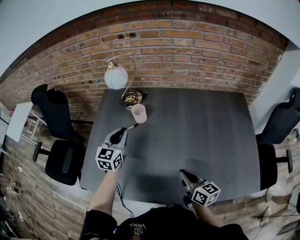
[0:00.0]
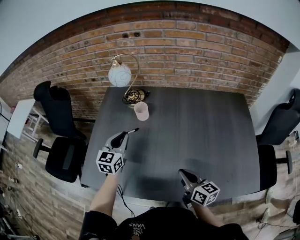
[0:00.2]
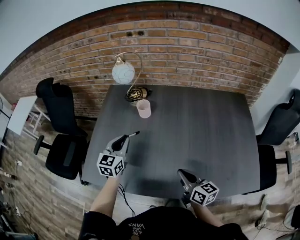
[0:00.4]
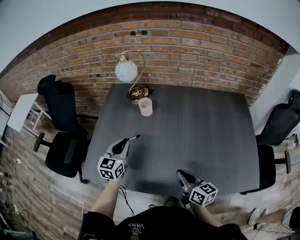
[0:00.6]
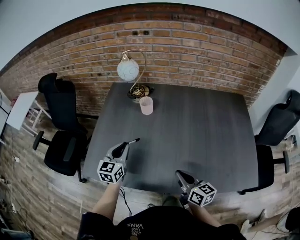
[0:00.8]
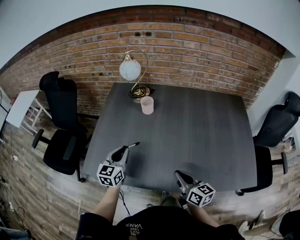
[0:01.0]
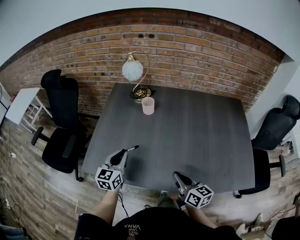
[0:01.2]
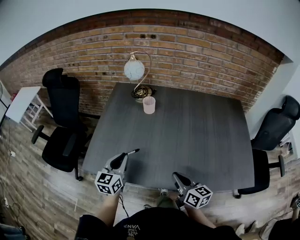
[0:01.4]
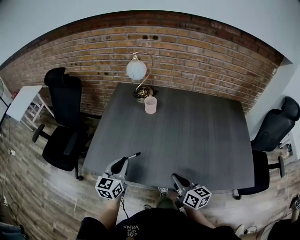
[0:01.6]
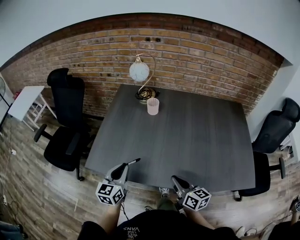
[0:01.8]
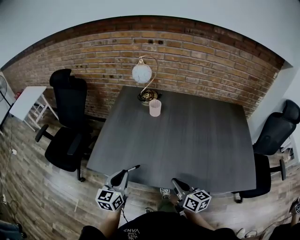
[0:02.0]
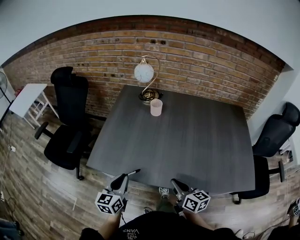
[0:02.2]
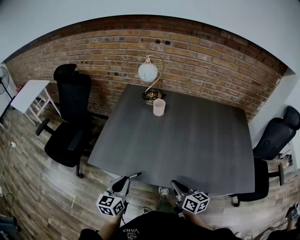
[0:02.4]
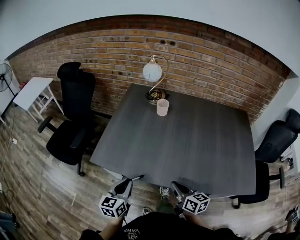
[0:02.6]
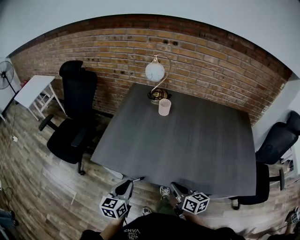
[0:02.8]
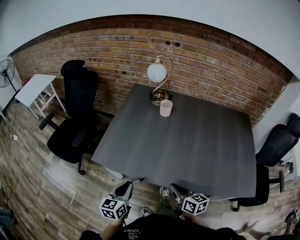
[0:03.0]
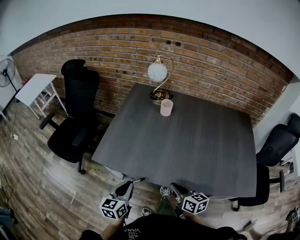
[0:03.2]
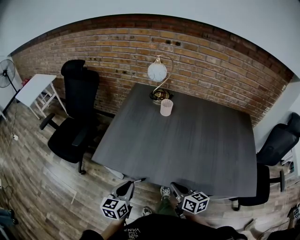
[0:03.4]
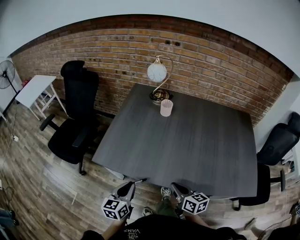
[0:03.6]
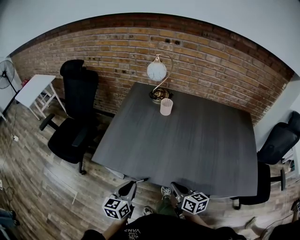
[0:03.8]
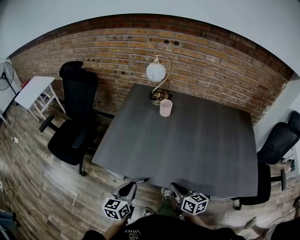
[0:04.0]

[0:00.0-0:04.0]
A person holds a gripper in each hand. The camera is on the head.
0:00.0 to 0:01.4: The right gripper is displaced backward and to the left by approximately 10 cm; the left gripper shifts about 20 cm backward.
0:01.4 to 0:02.6: The left gripper heads backward, covering some 15 cm, while the right gripper travels to the left by approximately 5 cm.
0:02.6 to 0:04.0: The grippers make only small movements.

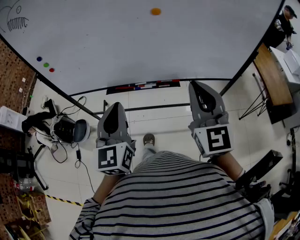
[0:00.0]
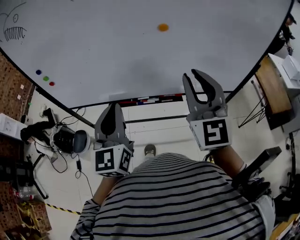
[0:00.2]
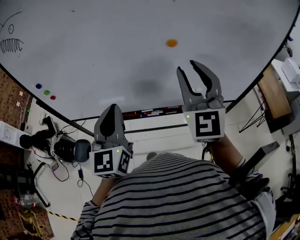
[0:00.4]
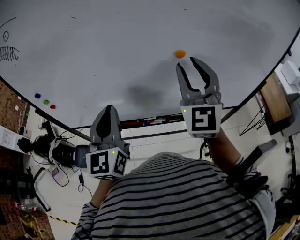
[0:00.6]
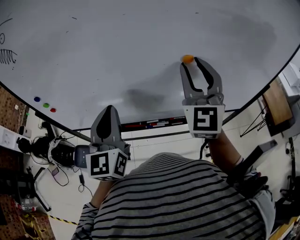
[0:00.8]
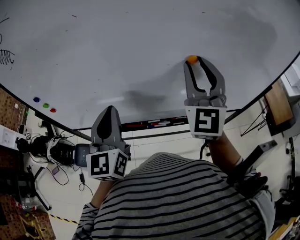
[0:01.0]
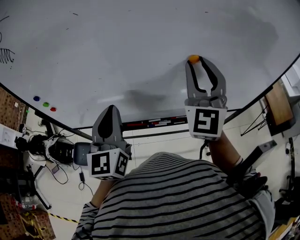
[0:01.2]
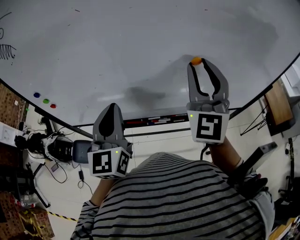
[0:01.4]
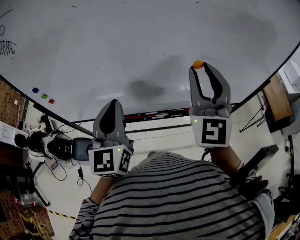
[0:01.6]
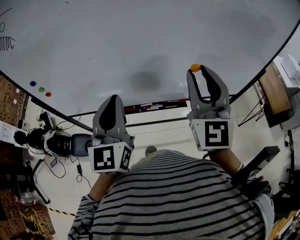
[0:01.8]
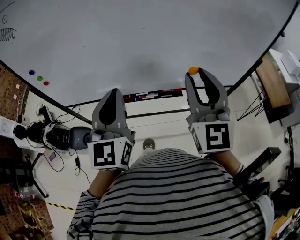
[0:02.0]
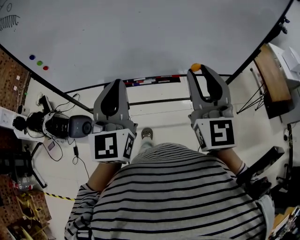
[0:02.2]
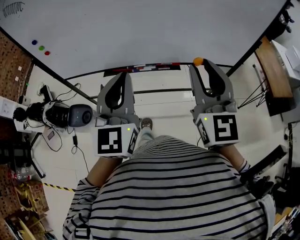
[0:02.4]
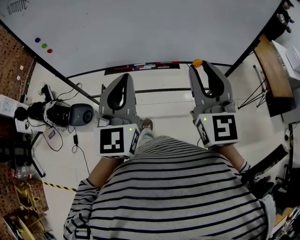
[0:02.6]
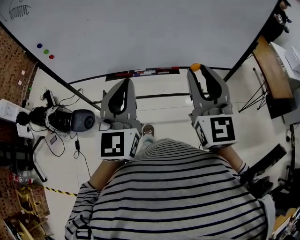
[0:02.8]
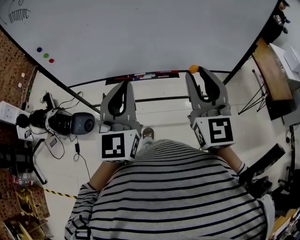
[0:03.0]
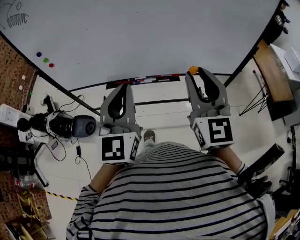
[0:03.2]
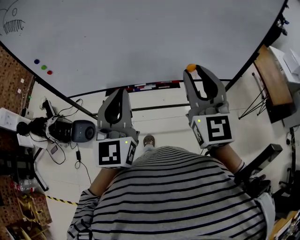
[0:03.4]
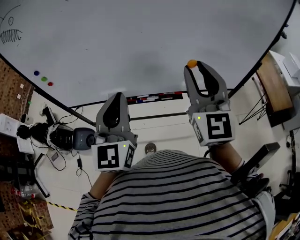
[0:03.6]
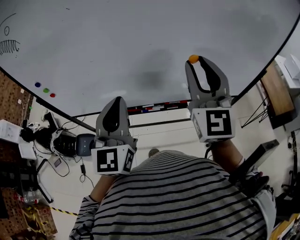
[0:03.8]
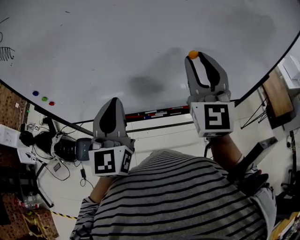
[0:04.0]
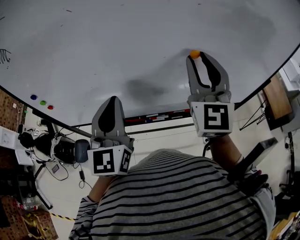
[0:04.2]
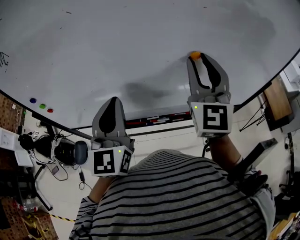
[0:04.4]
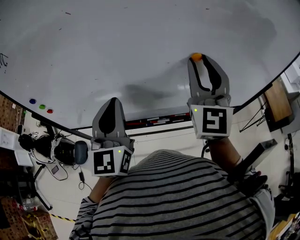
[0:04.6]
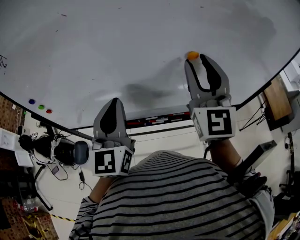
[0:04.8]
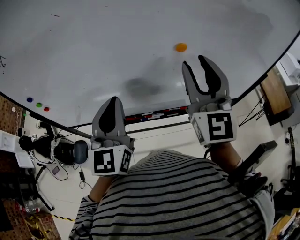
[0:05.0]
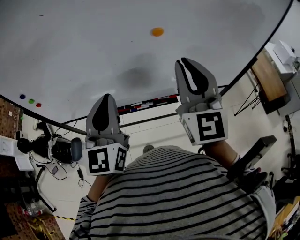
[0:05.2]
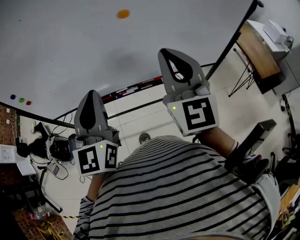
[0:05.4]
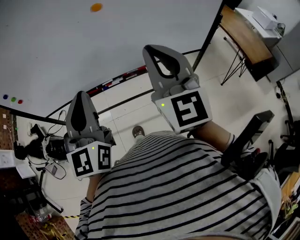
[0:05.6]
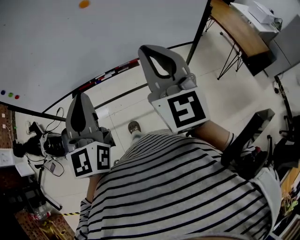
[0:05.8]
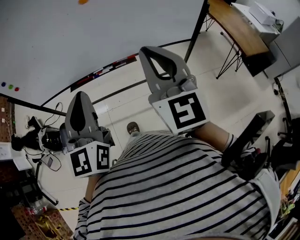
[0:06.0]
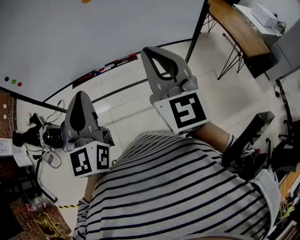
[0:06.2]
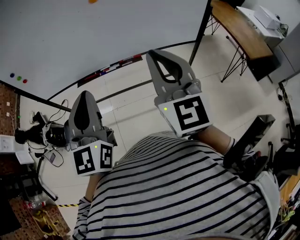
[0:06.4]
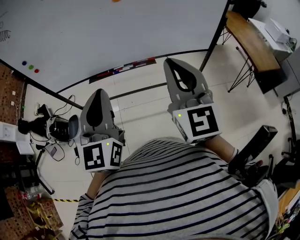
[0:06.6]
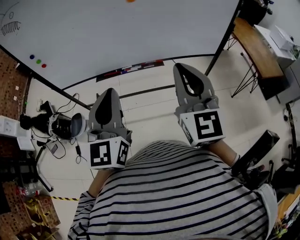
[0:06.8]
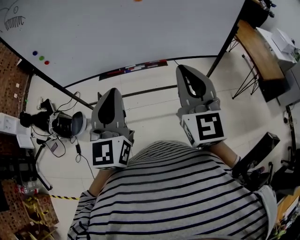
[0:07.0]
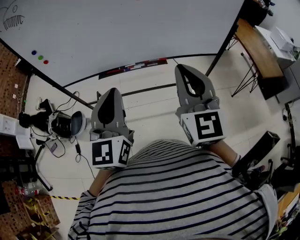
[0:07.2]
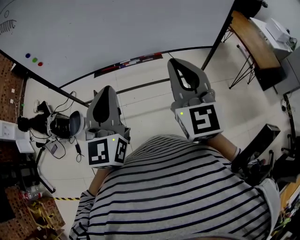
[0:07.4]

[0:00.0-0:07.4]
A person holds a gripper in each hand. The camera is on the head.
0:00.0 to 0:01.4: The left gripper travels forward and to the left by some 20 cm. The right gripper moves forward and upward, approximately 20 cm, changes its angle by some 20 degrees, and opens up.
0:01.4 to 0:03.0: The left gripper is displaced backward and to the right by about 25 cm. Meanwhile the right gripper shifts roughly 25 cm backward, and rotates approximately 20 degrees.
0:03.0 to 0:04.4: The right gripper goes about 25 cm forward. The left gripper heads forward and to the left, covering some 25 cm.
0:04.4 to 0:06.0: Both grippers travel together backward and to the right, roughly 30 cm. The right gripper closes its fingers.
0:06.0 to 0:07.4: The grippers both shift to the left by some 5 cm.

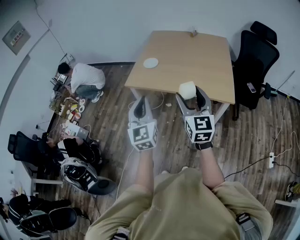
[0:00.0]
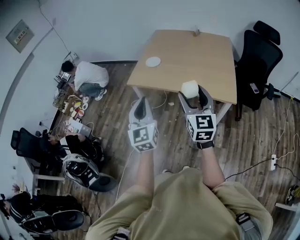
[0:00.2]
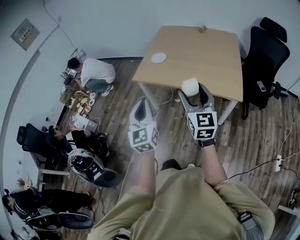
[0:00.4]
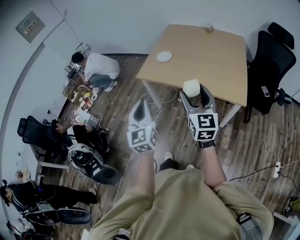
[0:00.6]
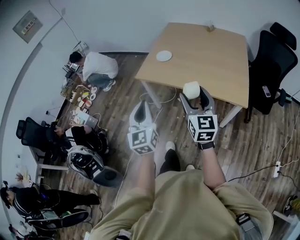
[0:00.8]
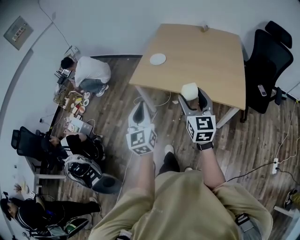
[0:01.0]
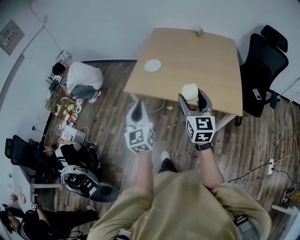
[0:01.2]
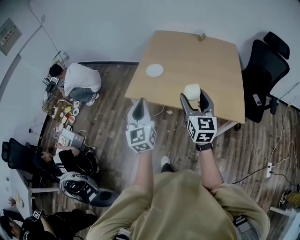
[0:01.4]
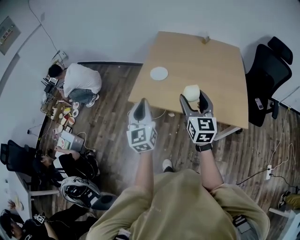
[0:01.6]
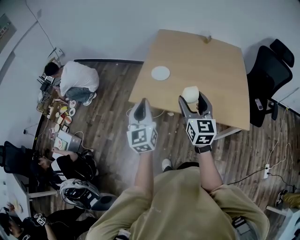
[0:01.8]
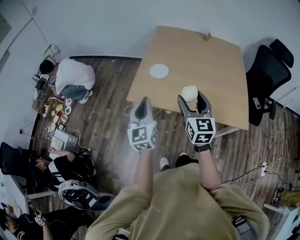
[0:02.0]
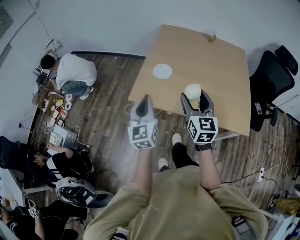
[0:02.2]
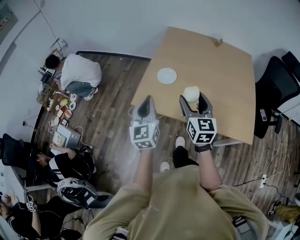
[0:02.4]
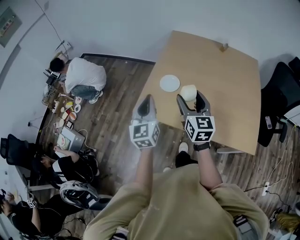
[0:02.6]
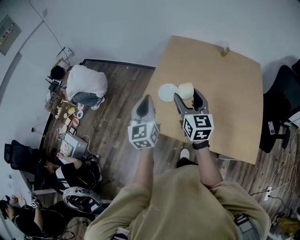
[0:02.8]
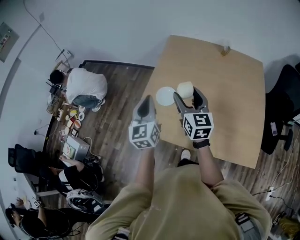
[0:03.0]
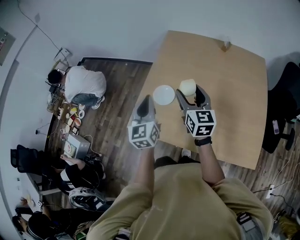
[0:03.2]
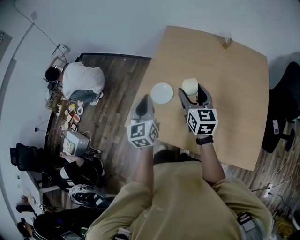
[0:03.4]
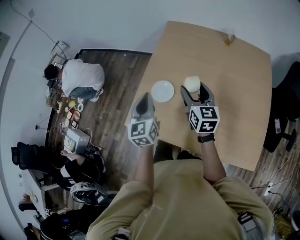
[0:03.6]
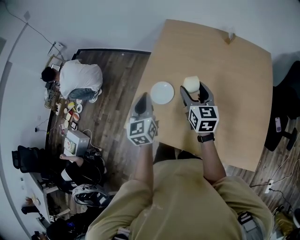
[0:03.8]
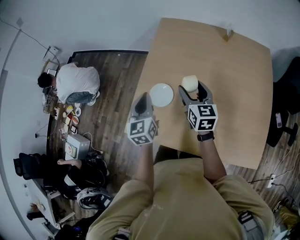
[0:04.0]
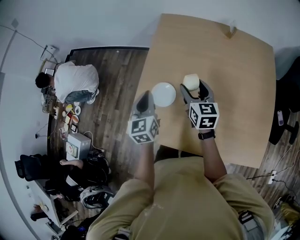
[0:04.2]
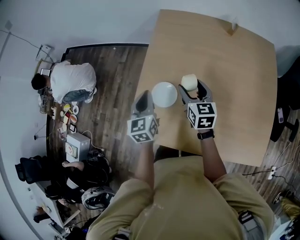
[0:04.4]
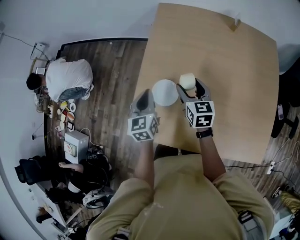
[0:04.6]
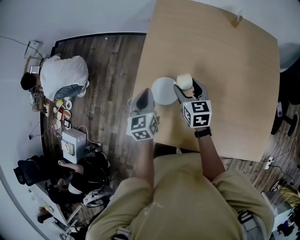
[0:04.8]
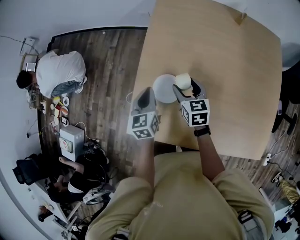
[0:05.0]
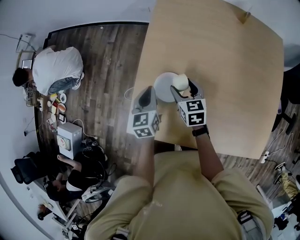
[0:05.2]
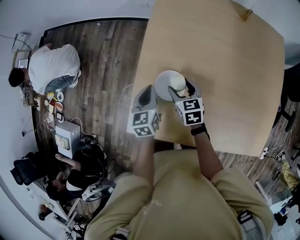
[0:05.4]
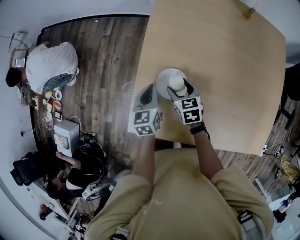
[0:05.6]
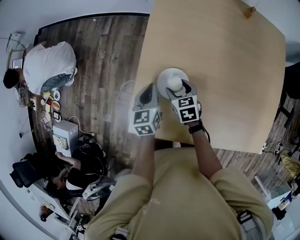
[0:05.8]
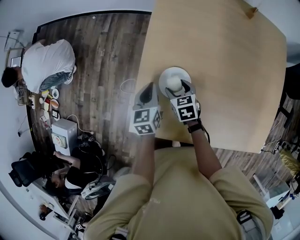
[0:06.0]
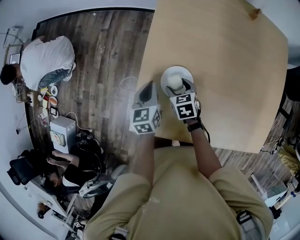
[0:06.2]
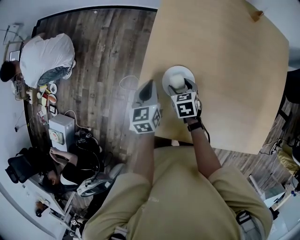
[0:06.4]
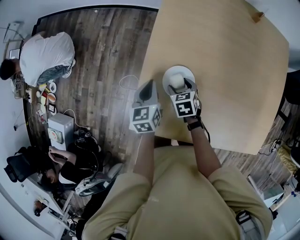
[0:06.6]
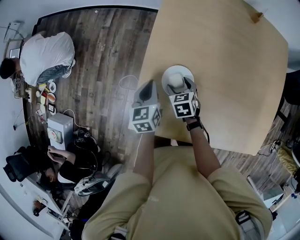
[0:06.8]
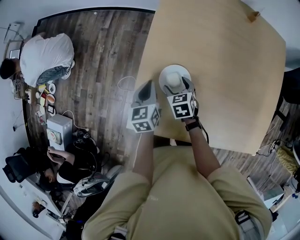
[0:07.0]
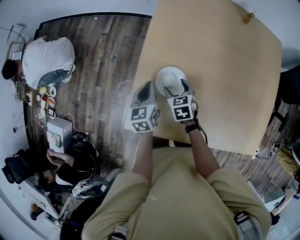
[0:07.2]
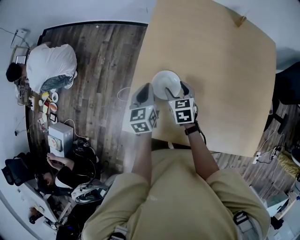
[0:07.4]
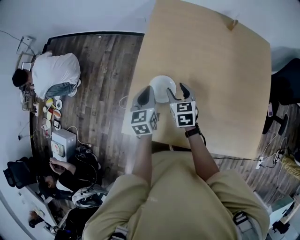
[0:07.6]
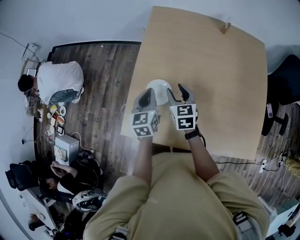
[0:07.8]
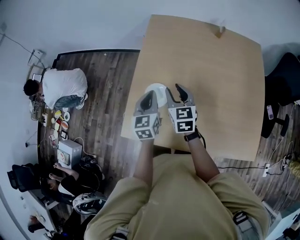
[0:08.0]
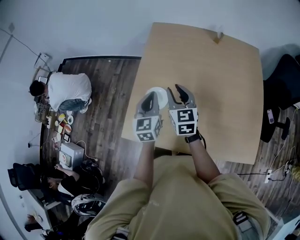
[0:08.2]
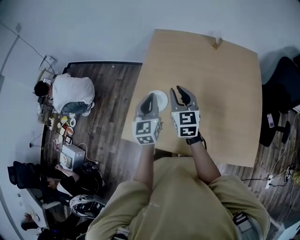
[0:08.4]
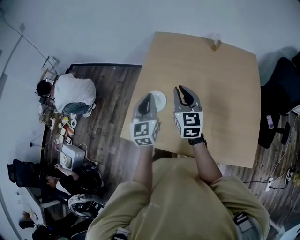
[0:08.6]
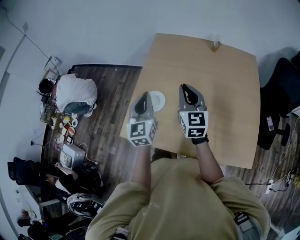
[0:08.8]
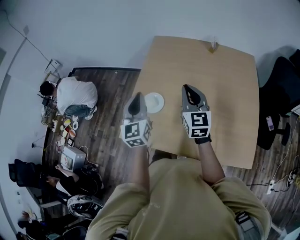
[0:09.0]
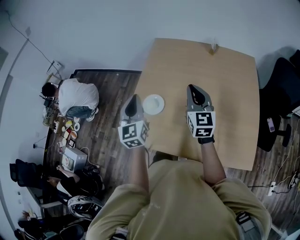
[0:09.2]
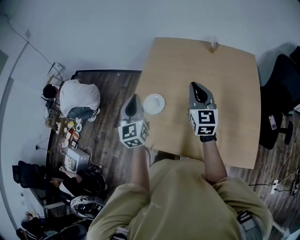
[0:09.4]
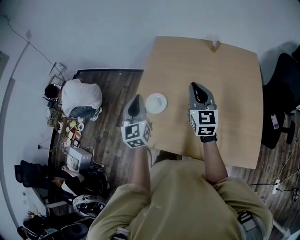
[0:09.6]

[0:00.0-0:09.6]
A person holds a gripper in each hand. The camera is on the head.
0:00.0 to 0:01.6: Both grippers move forward, about 25 cm.
0:01.6 to 0:03.2: Both grippers travel together forward, some 35 cm.
0:03.2 to 0:04.8: The grippers both shift downward and forward by about 25 cm. The right gripper swivels some 20 degrees. The left gripper changes its angle by some 20 degrees.
0:04.8 to 0:06.4: The left gripper goes roughly 10 cm downward and to the left. The right gripper shifts some 20 cm downward and to the left, and rotates some 30 degrees.
0:06.4 to 0:08.0: The left gripper shifts approximately 20 cm upward, to the right and backward, while the right gripper travels upward by roughly 25 cm, tips its fingers upward by approximately 40 degrees, and closes its fingers.
0:08.0 to 0:09.6: The left gripper heads upward and backward, covering approximately 15 cm, and swivels some 20 degrees. The right gripper is displaced to the right, upward and backward by approximately 20 cm, turns by some 20 degrees, and closes its fingers.

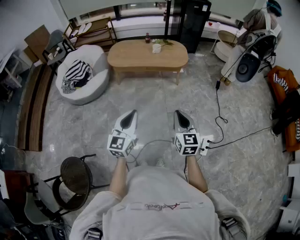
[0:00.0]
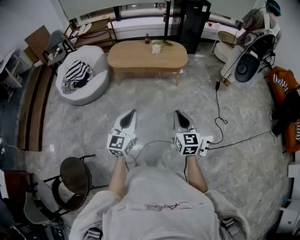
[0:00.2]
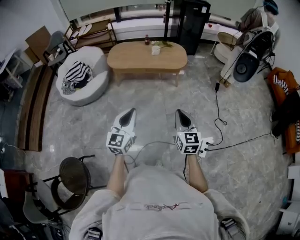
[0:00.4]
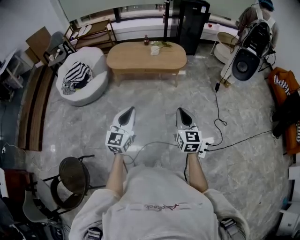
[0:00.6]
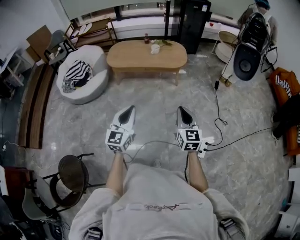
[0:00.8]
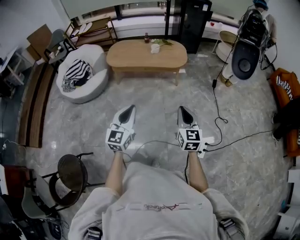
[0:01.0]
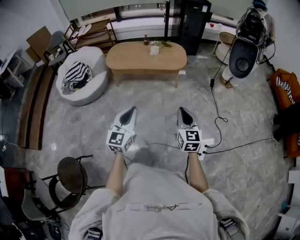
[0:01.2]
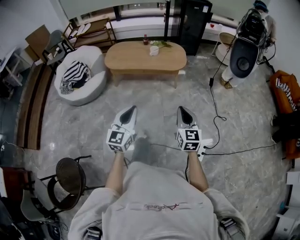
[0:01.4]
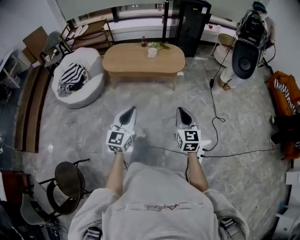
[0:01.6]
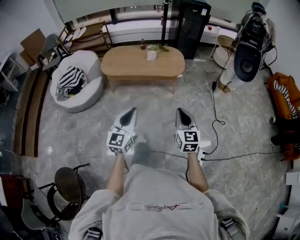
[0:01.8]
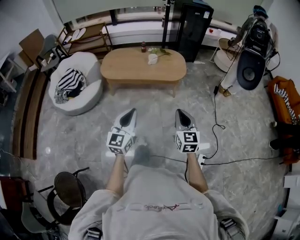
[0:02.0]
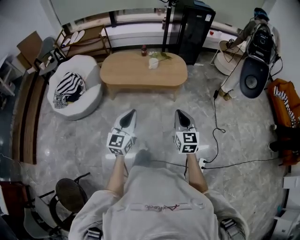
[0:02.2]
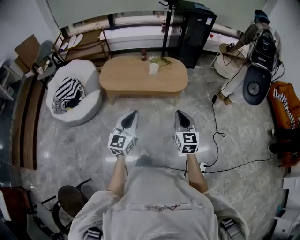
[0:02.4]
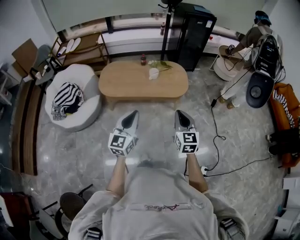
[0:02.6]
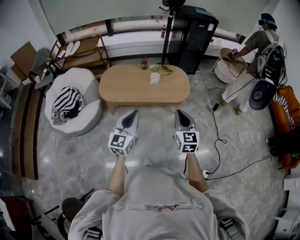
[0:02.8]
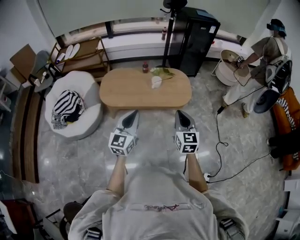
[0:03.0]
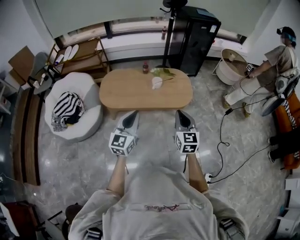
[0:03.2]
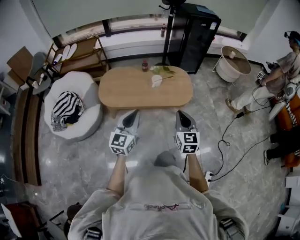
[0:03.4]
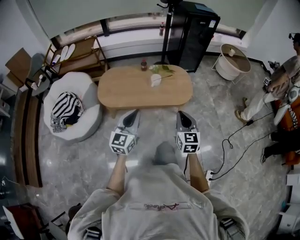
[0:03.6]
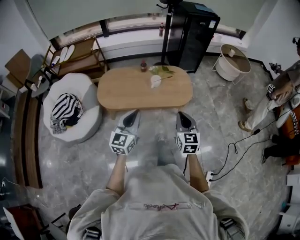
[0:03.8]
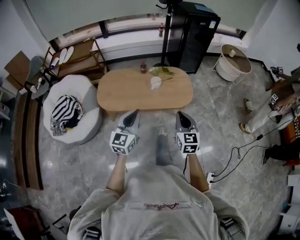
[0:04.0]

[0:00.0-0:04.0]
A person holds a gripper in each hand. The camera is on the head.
0:00.0 to 0:01.4: The left gripper heads forward and to the right, covering some 10 cm, while the right gripper heads to the right and forward, covering some 10 cm.
0:01.4 to 0:02.6: The right gripper heads forward and to the left, covering approximately 35 cm. Meanwhile the left gripper moves forward, approximately 30 cm.
0:02.6 to 0:04.0: Both grippers move forward, about 15 cm.
